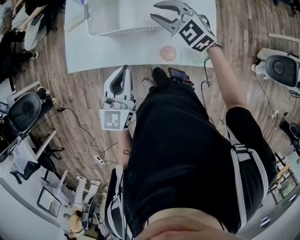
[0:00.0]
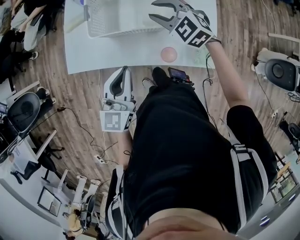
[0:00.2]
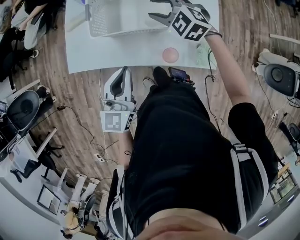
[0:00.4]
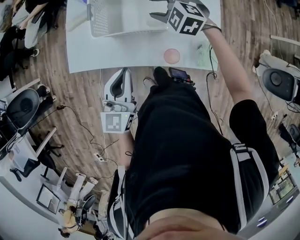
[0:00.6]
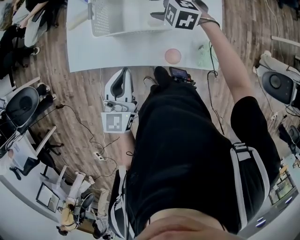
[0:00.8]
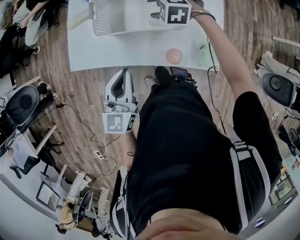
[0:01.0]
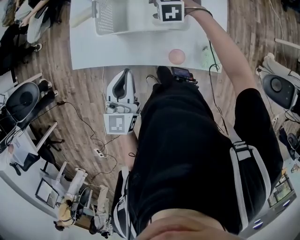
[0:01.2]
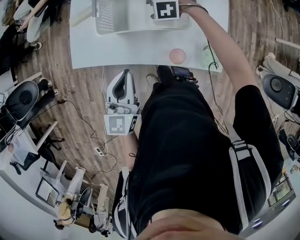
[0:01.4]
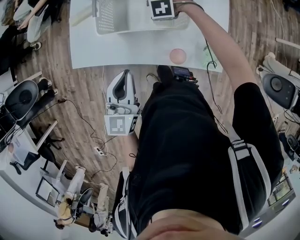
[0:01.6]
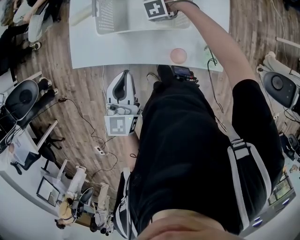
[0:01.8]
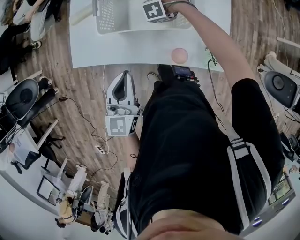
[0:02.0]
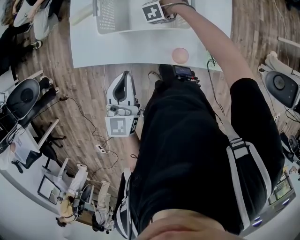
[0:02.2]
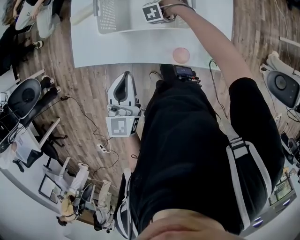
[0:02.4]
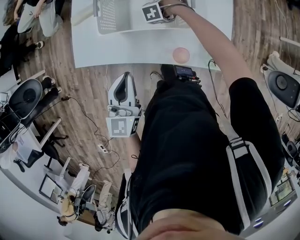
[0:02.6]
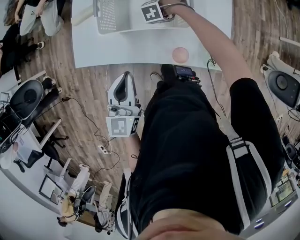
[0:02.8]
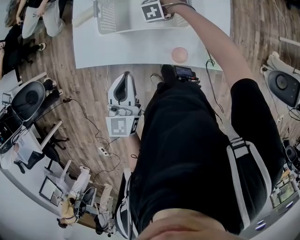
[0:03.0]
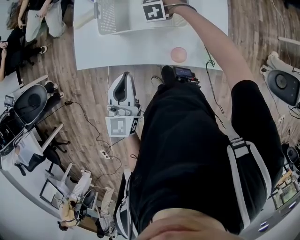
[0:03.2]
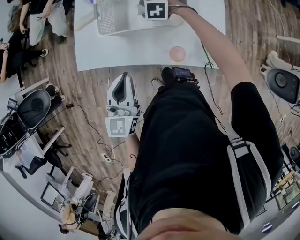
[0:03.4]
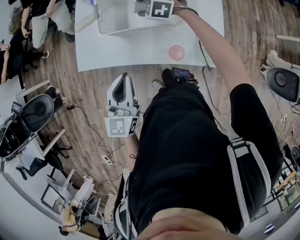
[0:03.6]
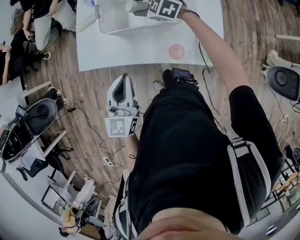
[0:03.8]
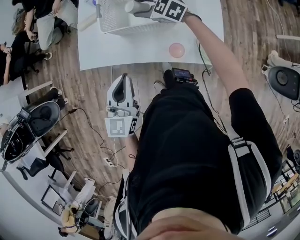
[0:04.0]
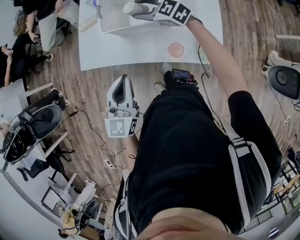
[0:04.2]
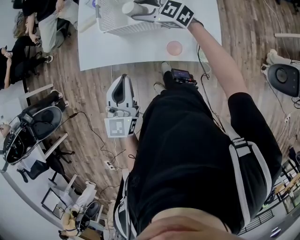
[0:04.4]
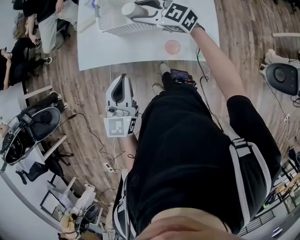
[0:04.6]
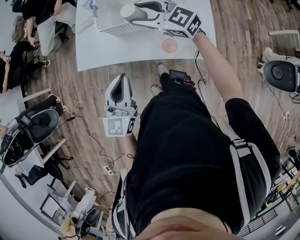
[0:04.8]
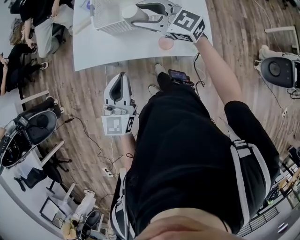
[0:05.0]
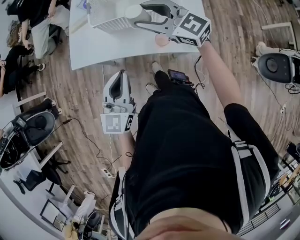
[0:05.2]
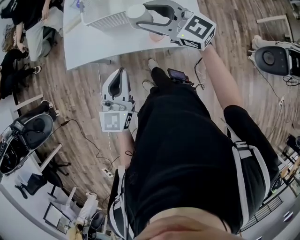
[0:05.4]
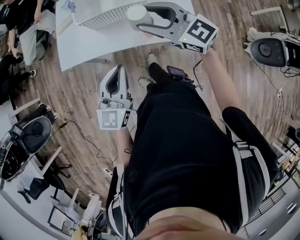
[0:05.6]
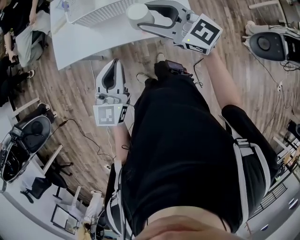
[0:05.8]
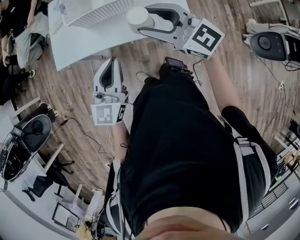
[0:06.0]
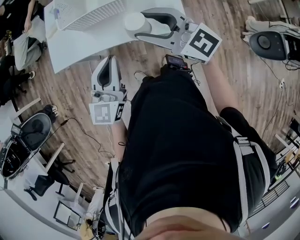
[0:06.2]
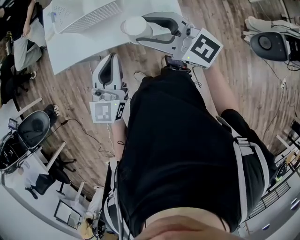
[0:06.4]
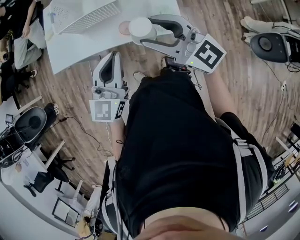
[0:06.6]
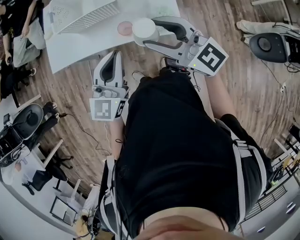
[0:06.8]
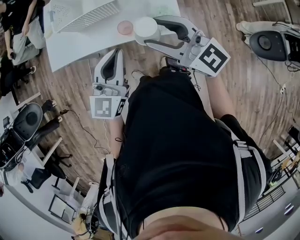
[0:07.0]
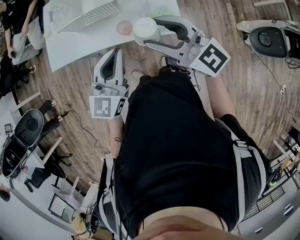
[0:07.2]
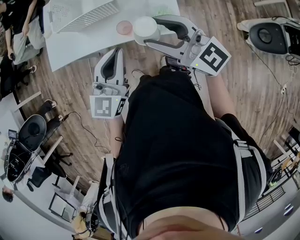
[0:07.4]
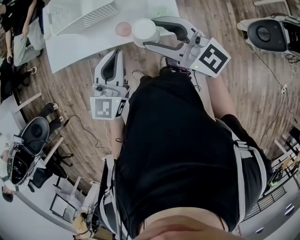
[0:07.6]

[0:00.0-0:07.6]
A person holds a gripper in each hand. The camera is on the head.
0.0 to 1.6 s: The right gripper heads downward, covering about 15 cm, points its fingers approximately 50 degrees further downward, and opens up.
1.6 to 3.0 s: The right gripper is displaced downward by roughly 5 cm.
3.0 to 4.6 s: The right gripper heads upward, covering about 25 cm, and tilts its fingers approximately 70 degrees upward; the left gripper shifts by about 10 cm.
4.6 to 6.0 s: The right gripper moves backward, roughly 25 cm. Meanwhile the left gripper heads backward and to the right, covering about 10 cm.
6.0 to 7.6 s: The right gripper travels to the right and backward by roughly 10 cm; the left gripper moves to the right, some 15 cm.

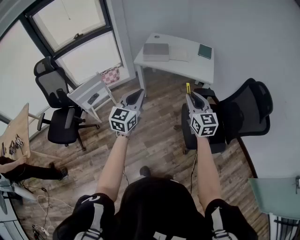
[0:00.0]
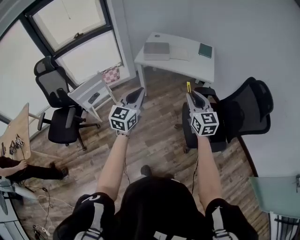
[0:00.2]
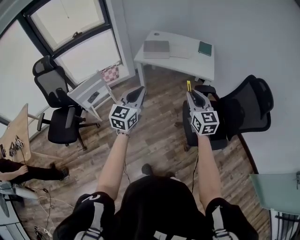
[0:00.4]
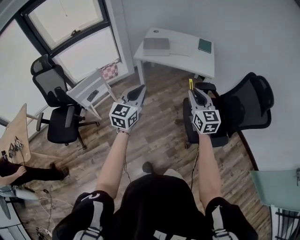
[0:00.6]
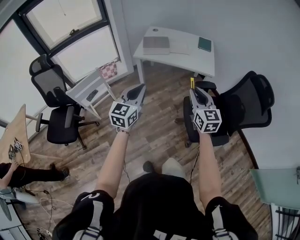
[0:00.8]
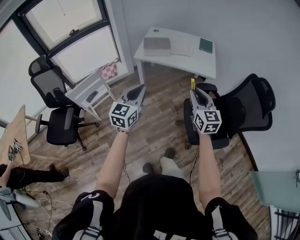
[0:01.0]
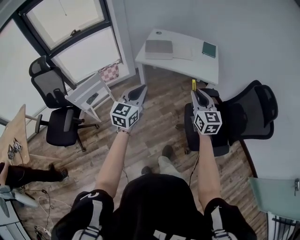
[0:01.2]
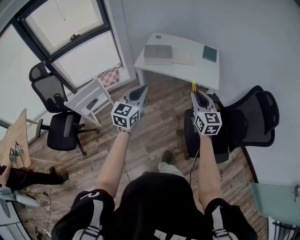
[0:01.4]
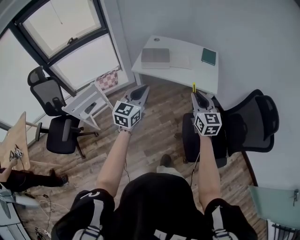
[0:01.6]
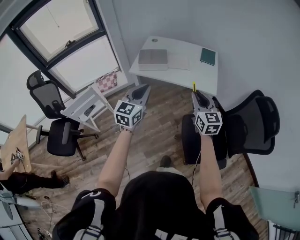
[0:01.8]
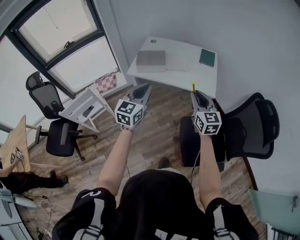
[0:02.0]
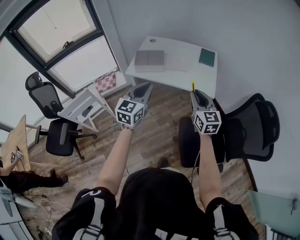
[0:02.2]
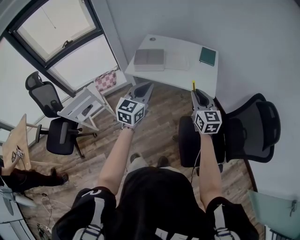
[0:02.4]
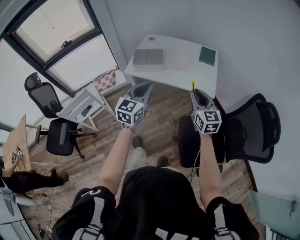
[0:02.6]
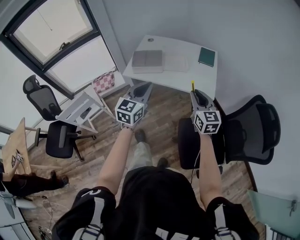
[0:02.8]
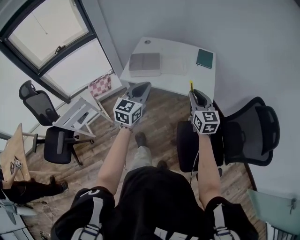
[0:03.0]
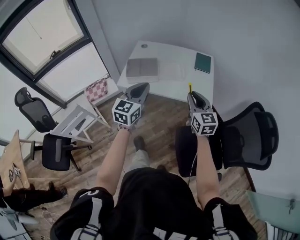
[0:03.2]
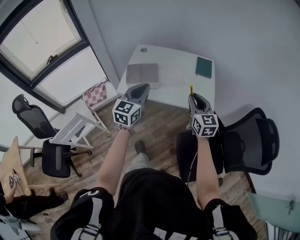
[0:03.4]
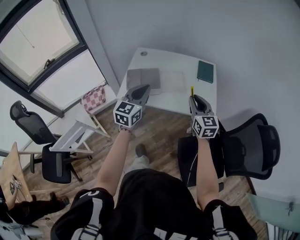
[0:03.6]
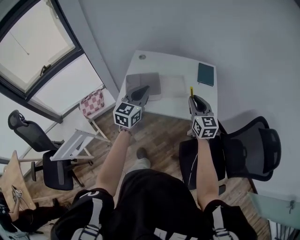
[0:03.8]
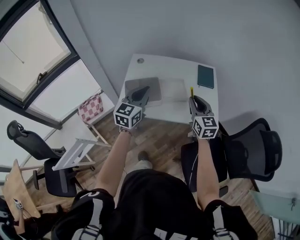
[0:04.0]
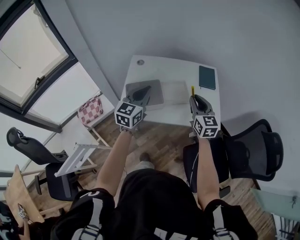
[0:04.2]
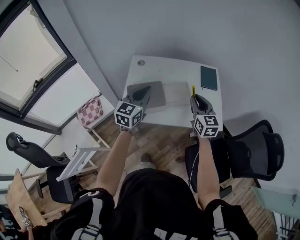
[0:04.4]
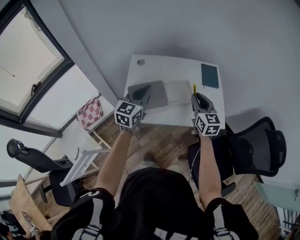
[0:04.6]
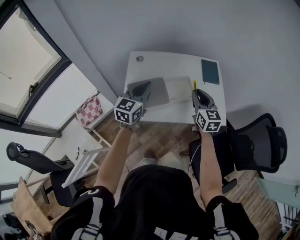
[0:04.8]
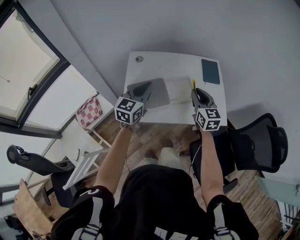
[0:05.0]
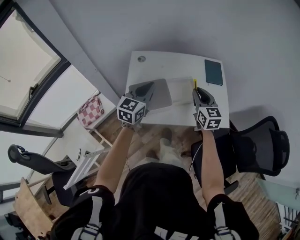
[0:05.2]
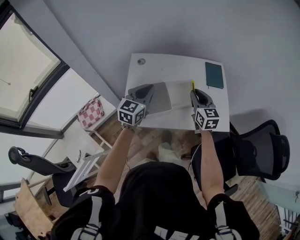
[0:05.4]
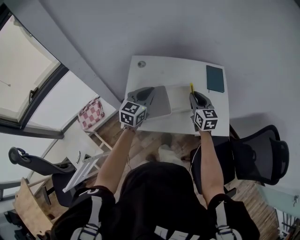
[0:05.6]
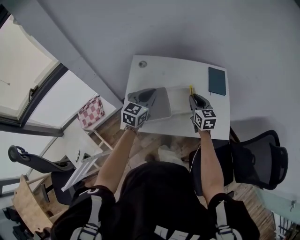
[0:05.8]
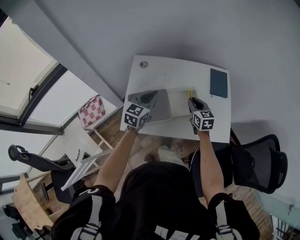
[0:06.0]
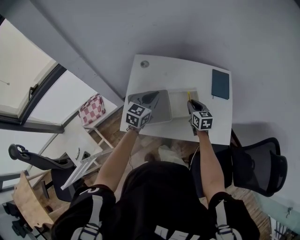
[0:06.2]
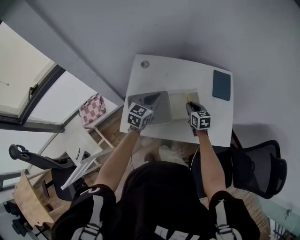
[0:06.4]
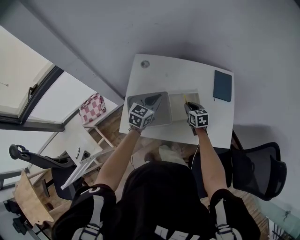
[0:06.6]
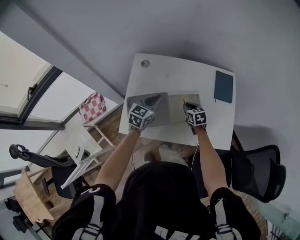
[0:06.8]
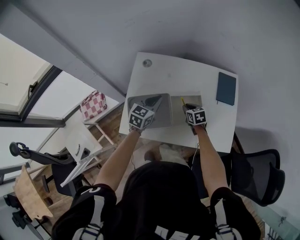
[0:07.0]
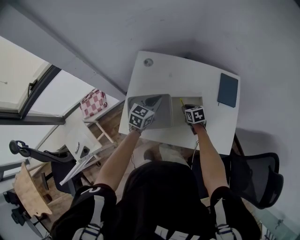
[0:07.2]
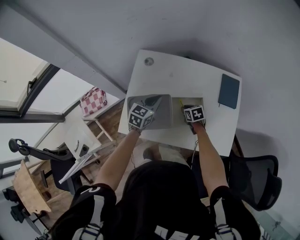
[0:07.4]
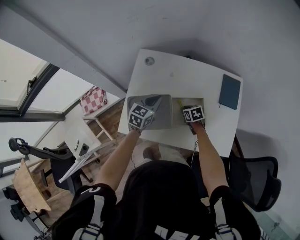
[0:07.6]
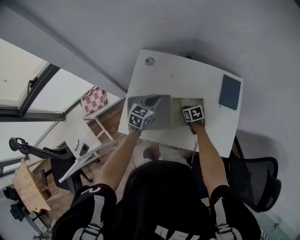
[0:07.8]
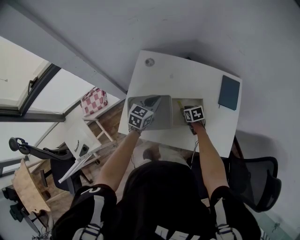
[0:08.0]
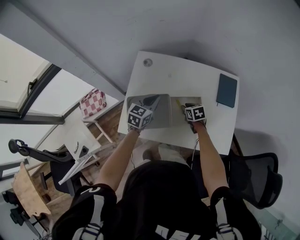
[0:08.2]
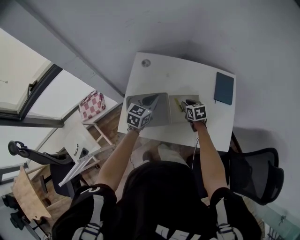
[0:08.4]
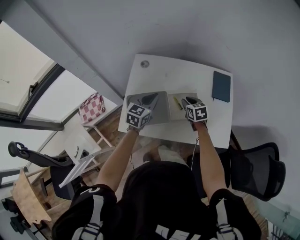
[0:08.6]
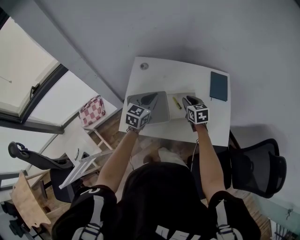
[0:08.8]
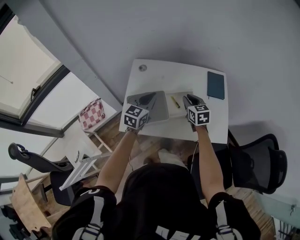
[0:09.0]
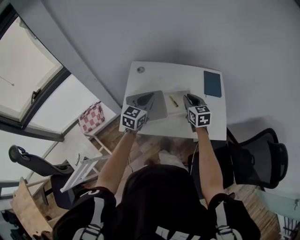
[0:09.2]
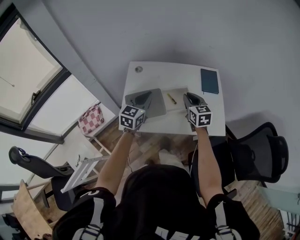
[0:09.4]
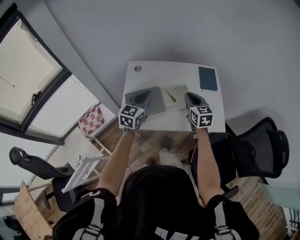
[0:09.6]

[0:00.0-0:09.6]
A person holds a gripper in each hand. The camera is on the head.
0.0 to 1.6 s: The two grippers go about 15 cm forward.
1.6 to 3.2 s: The two grippers go some 20 cm forward.
3.2 to 4.8 s: The two grippers go roughly 30 cm forward and to the left.
4.8 to 6.4 s: The grippers both shift downward and forward by about 20 cm. The right gripper changes its angle by approximately 30 degrees.
6.4 to 8.0 s: The left gripper heads downward, covering approximately 5 cm. Meanwhile the right gripper heads downward, covering roughly 10 cm, and rotates about 30 degrees.
8.0 to 9.6 s: The grippers both shift upward and backward by roughly 25 cm. The right gripper tilts its fingers about 40 degrees upward.

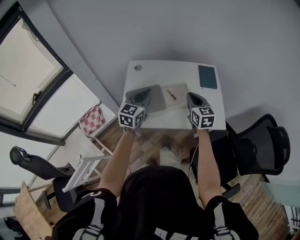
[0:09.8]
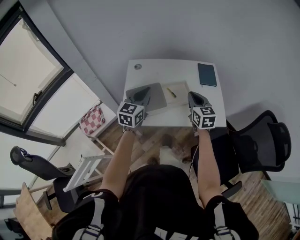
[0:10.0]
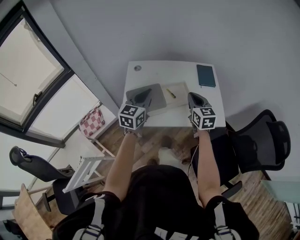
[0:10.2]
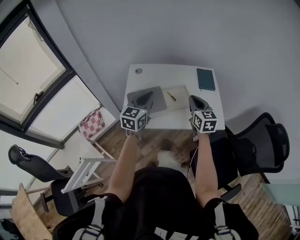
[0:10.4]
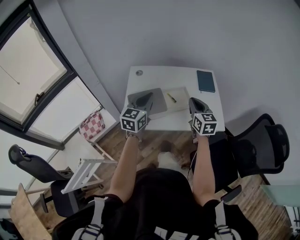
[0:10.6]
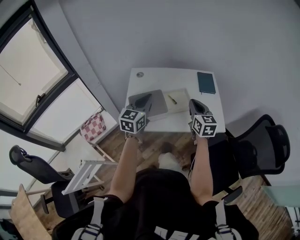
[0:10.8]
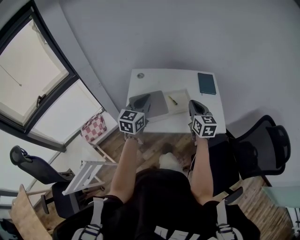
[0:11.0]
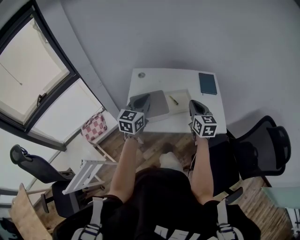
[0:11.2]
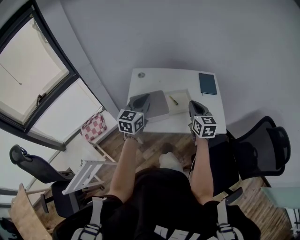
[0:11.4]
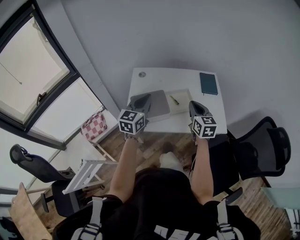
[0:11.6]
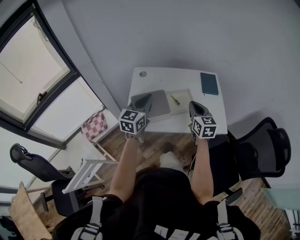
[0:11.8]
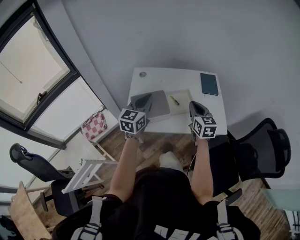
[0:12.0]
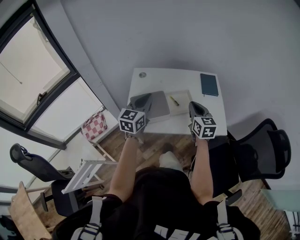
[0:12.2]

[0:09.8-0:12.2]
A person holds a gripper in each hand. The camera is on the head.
9.8 to 11.0 s: The left gripper changes place by some 5 cm; the right gripper shifts by roughly 5 cm.
11.0 to 12.2 s: There are only small adjustments of the grippers.

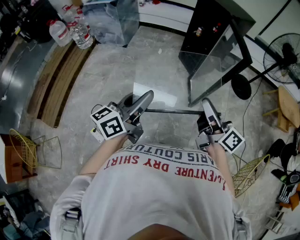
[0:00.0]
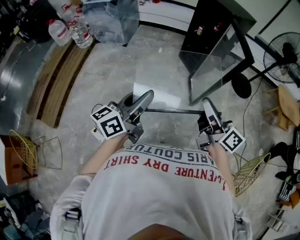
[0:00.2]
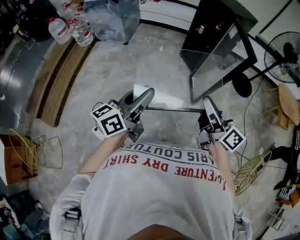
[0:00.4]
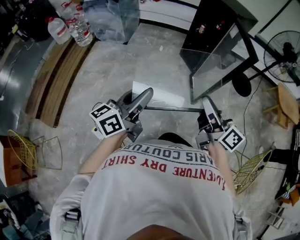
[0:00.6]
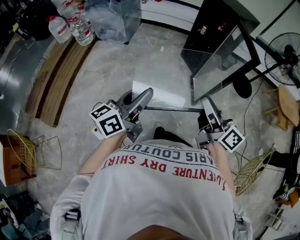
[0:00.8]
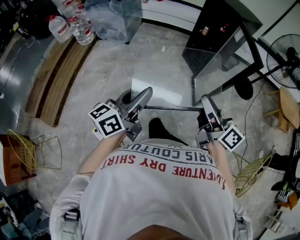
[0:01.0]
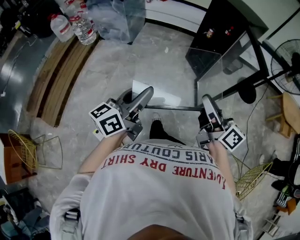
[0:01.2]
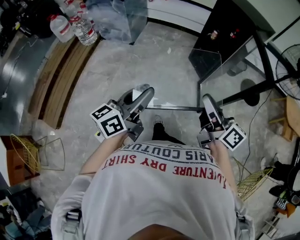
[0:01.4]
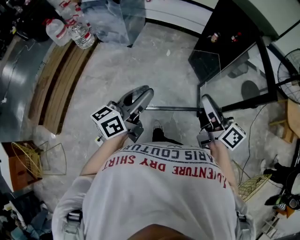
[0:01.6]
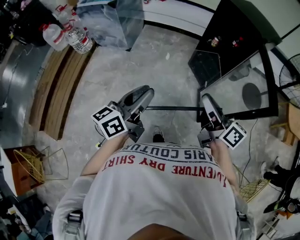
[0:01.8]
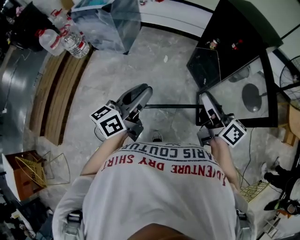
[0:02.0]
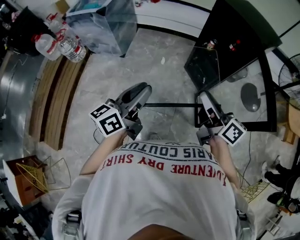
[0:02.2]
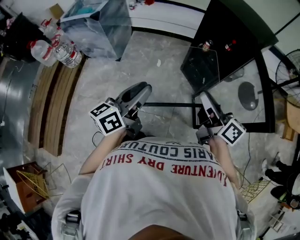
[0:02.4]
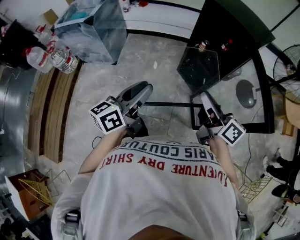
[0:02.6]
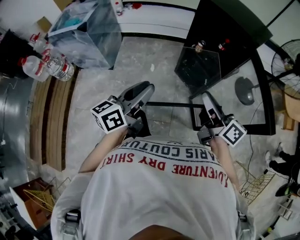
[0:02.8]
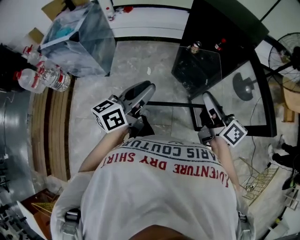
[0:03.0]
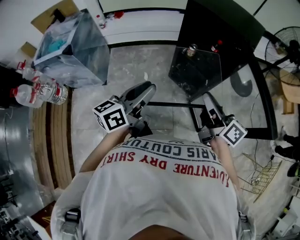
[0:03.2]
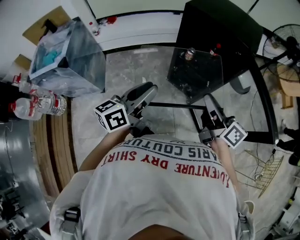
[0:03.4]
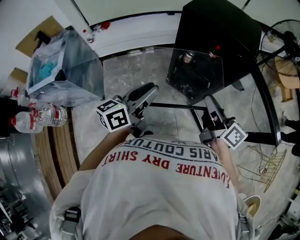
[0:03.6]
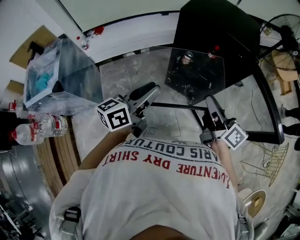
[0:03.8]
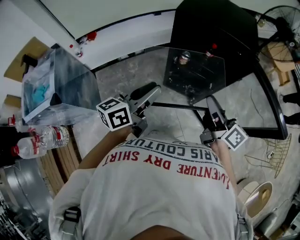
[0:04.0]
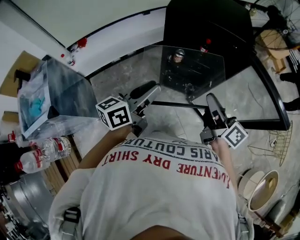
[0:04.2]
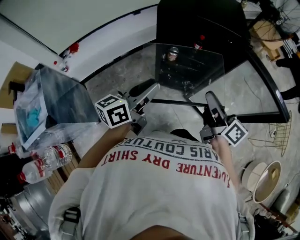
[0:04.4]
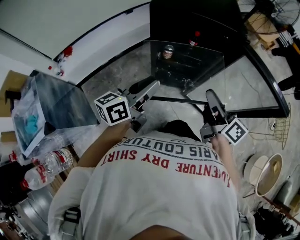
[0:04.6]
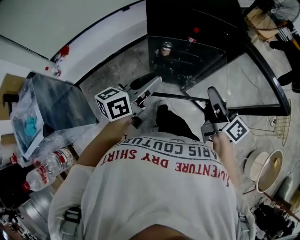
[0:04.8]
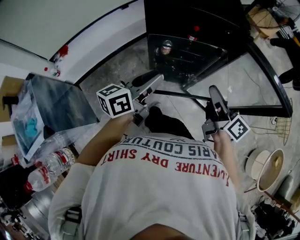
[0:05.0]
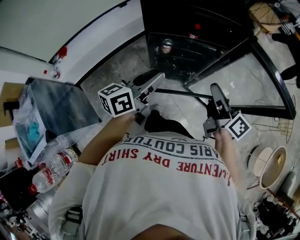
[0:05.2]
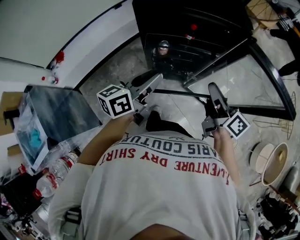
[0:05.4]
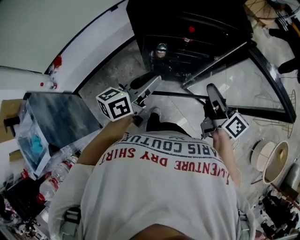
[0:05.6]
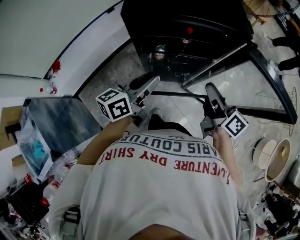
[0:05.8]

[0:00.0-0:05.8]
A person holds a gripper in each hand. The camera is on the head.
0.0 to 1.4 s: Both grippers move forward and to the left, about 15 cm.
1.4 to 2.8 s: Both grippers move forward, roughly 30 cm.
2.8 to 4.4 s: The left gripper changes place by approximately 35 cm, and rotates roughly 40 degrees. Meanwhile the right gripper shifts by some 20 cm, and changes its angle by approximately 40 degrees.
4.4 to 5.8 s: The two grippers go approximately 15 cm forward and downward.
